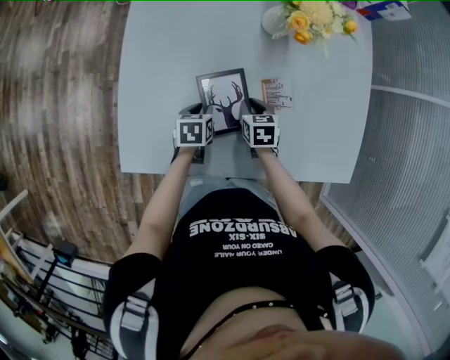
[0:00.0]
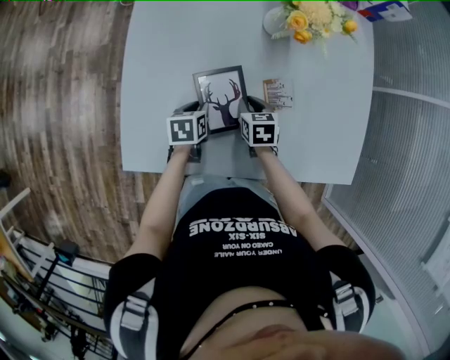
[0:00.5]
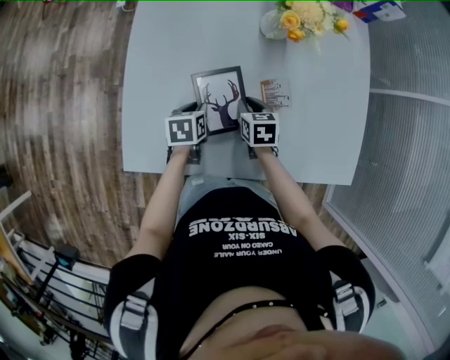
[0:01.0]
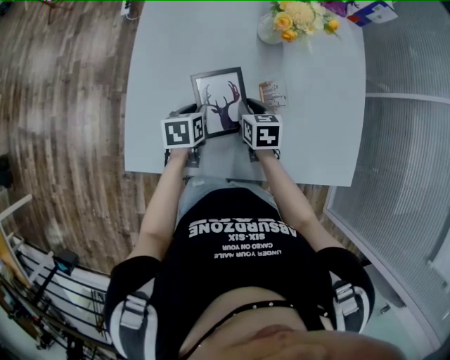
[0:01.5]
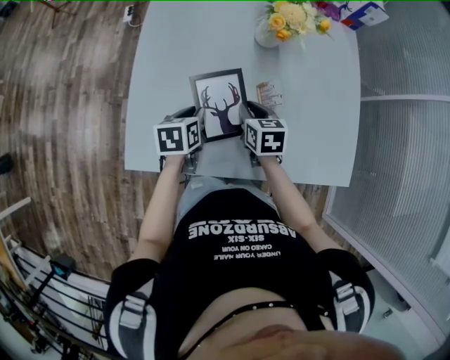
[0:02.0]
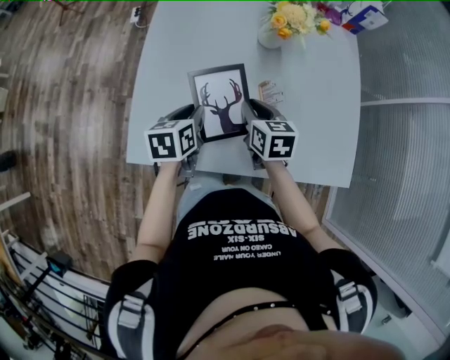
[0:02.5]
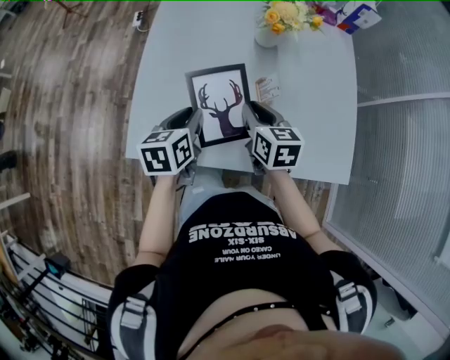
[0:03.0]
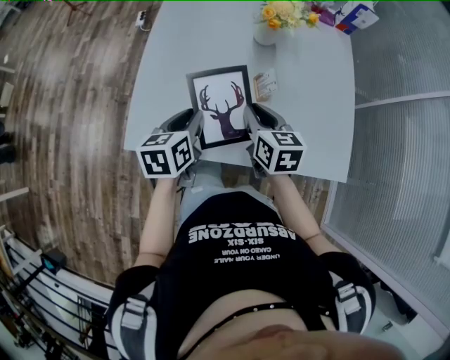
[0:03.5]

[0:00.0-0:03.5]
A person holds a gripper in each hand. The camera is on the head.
0:00.0 to 0:02.0: The grippers both shift upward by approximately 15 cm.
0:02.0 to 0:03.5: The two grippers go roughly 15 cm upward and backward.

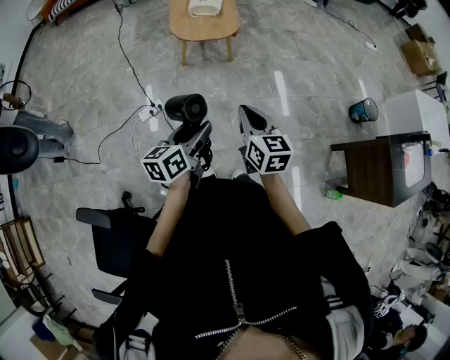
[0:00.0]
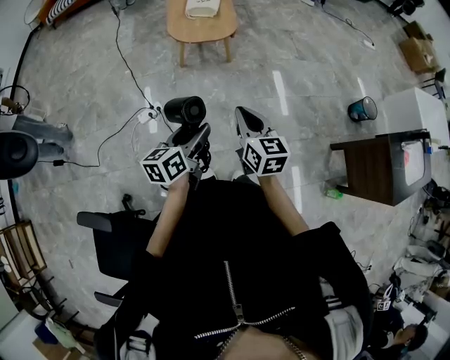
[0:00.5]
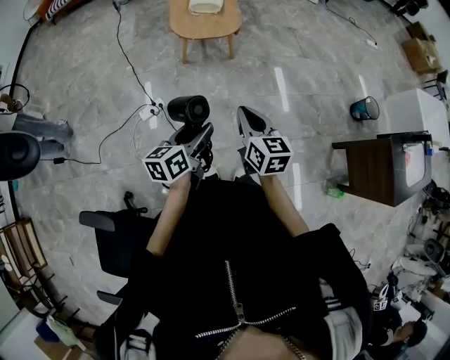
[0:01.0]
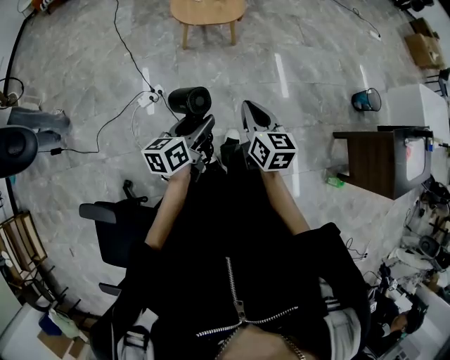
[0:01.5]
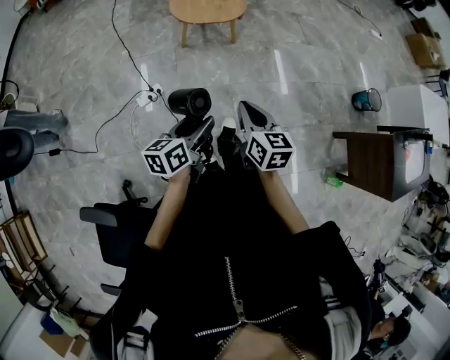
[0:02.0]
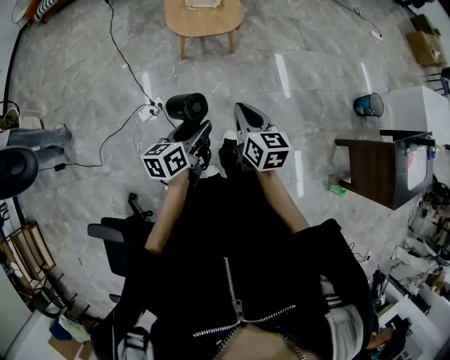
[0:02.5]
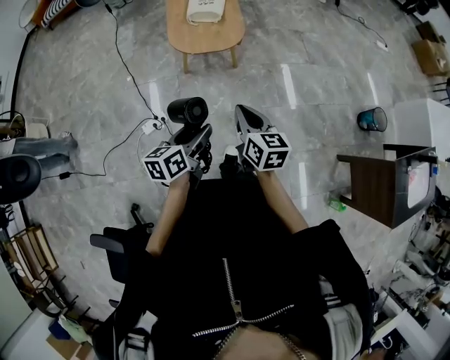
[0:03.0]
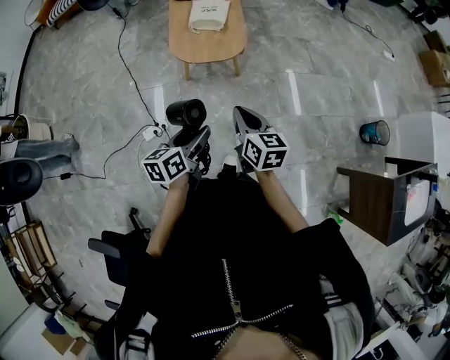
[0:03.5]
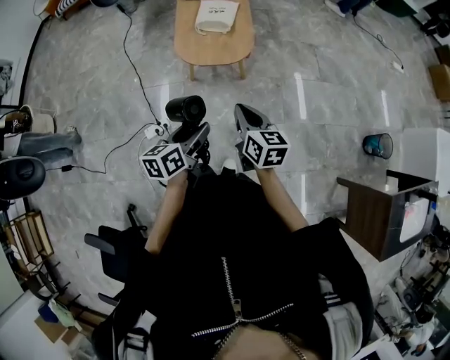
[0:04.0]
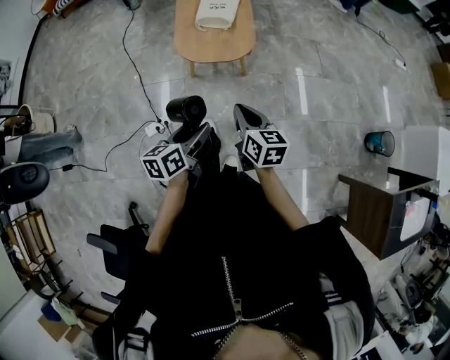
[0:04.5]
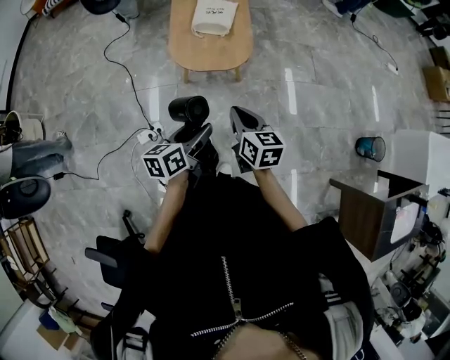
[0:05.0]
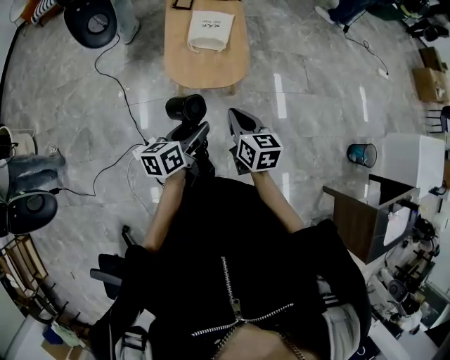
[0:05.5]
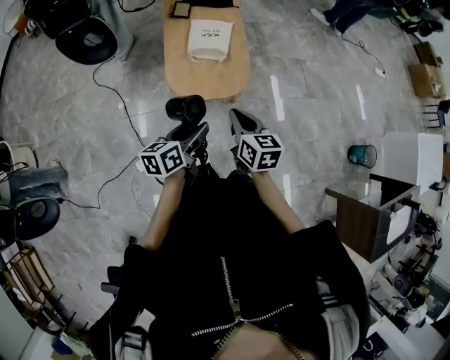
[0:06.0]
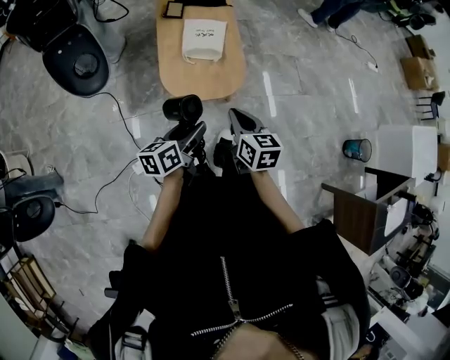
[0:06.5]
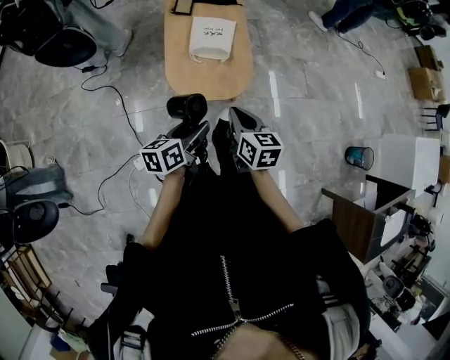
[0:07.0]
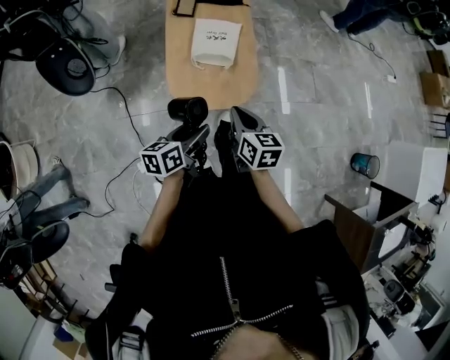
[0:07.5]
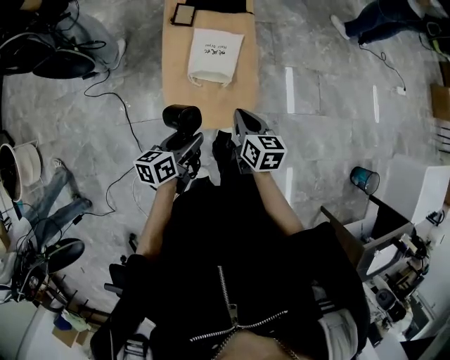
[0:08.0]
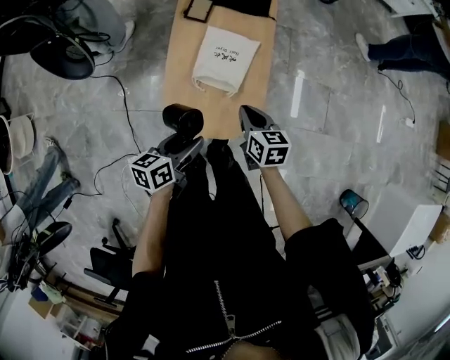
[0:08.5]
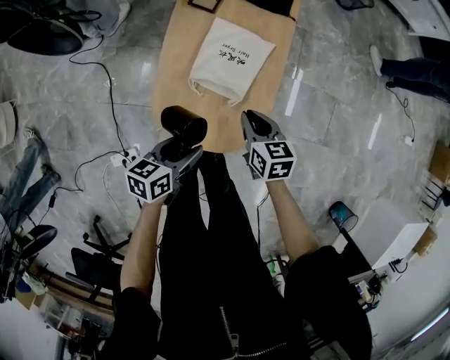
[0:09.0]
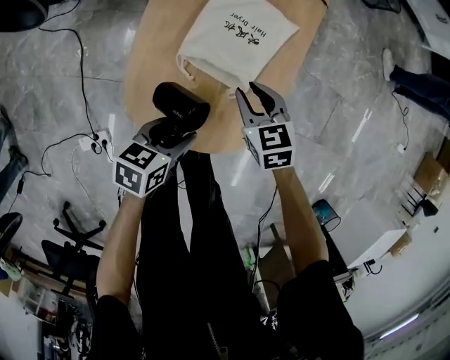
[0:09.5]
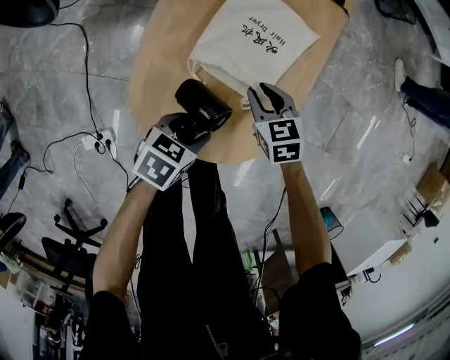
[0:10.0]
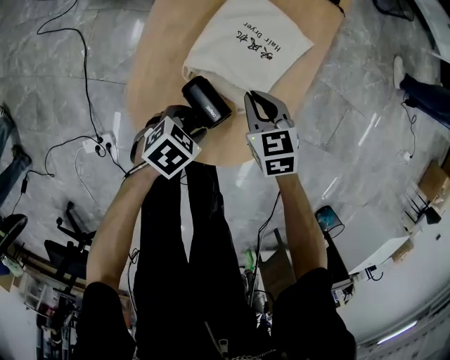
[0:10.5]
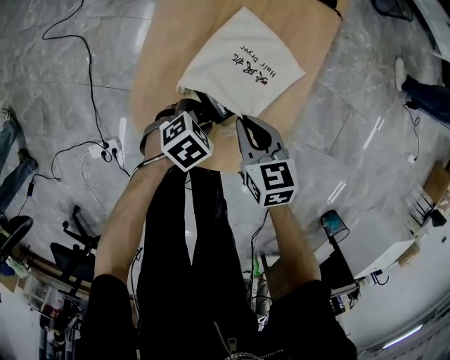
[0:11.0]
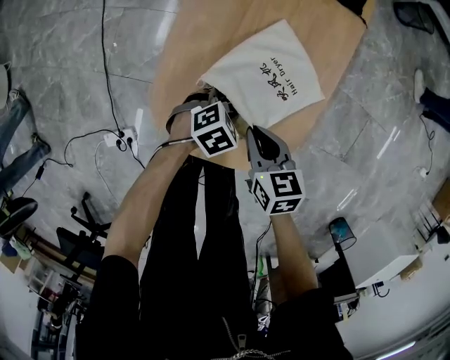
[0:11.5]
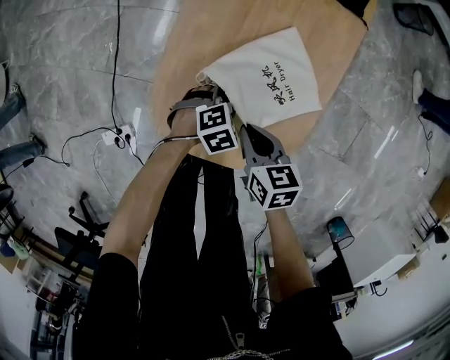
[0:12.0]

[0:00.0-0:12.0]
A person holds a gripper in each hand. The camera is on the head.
0:00.0 to 0:02.0: The right gripper moves roughly 5 cm. The left gripper ends up about 5 cm from where it was.
0:02.0 to 0:04.0: Both grippers move forward, approximately 25 cm.
0:04.0 to 0:06.0: The two grippers go roughly 25 cm forward and to the left.
0:06.0 to 0:08.0: Both grippers travel together forward, approximately 20 cm.
0:08.0 to 0:10.0: The right gripper shifts approximately 40 cm downward and forward, swivels some 50 degrees, and opens its fingers, while the left gripper travels downward by about 30 cm, and swivels some 30 degrees.
0:10.0 to 0:12.0: The left gripper heads downward and forward, covering roughly 10 cm, and changes its angle by some 40 degrees. Meanwhile the right gripper shifts about 10 cm backward, and rotates roughly 20 degrees.

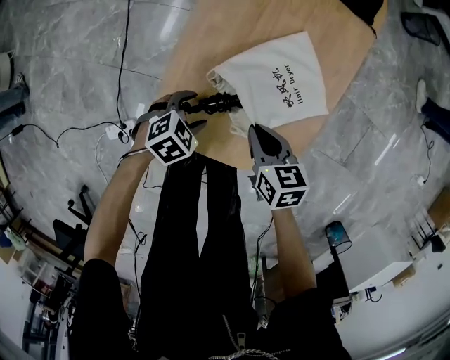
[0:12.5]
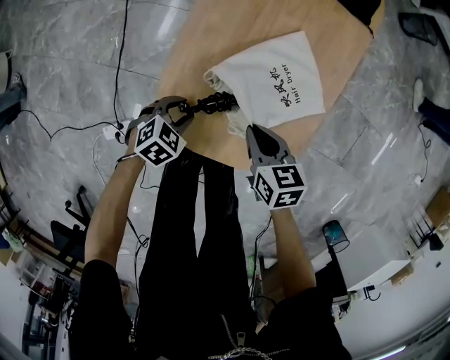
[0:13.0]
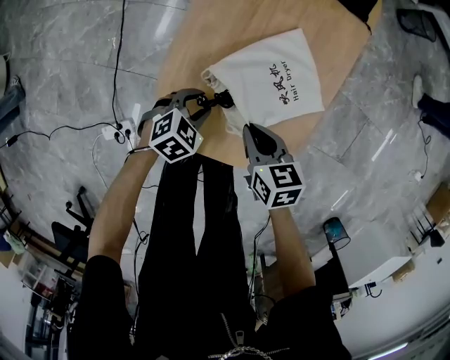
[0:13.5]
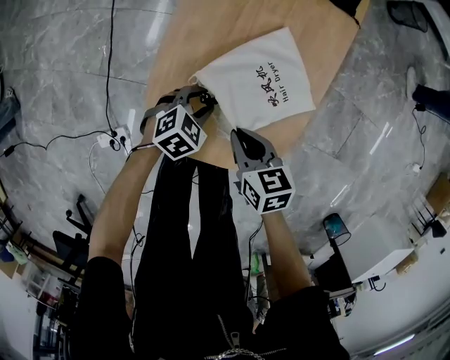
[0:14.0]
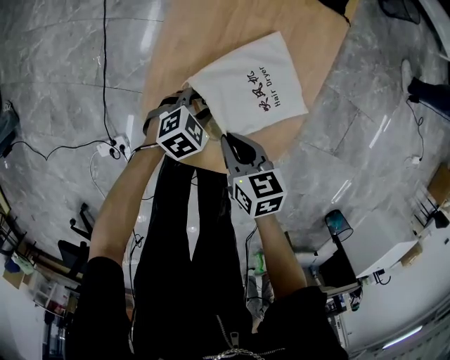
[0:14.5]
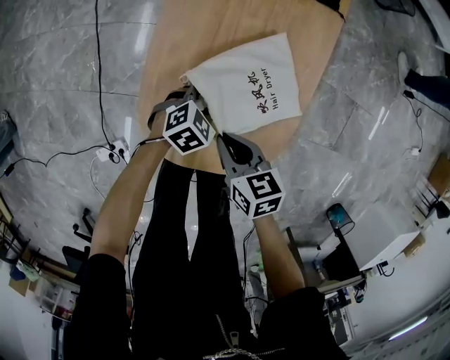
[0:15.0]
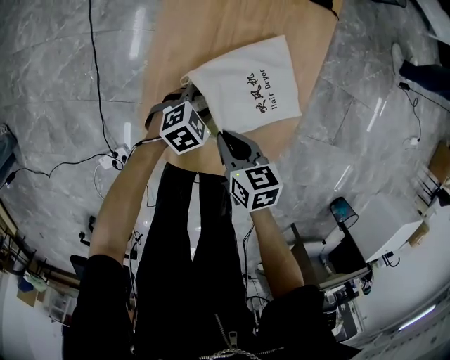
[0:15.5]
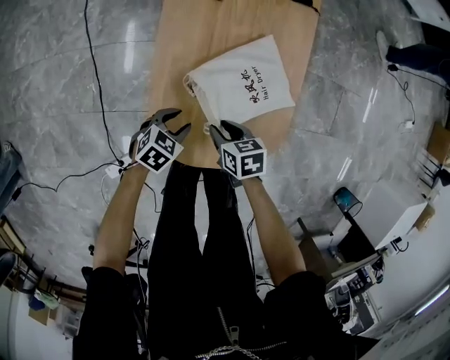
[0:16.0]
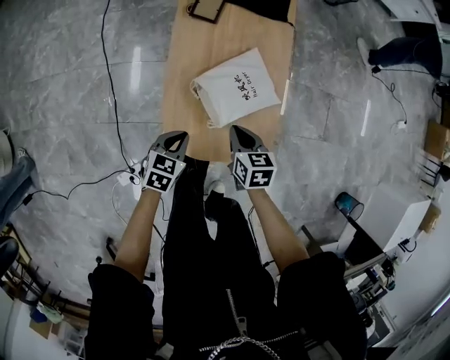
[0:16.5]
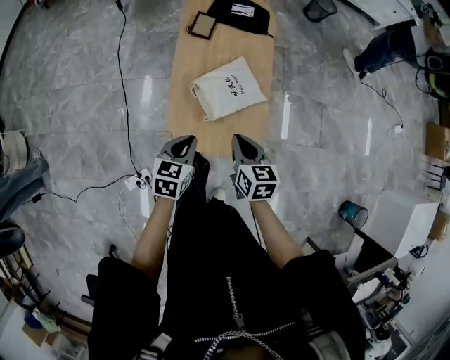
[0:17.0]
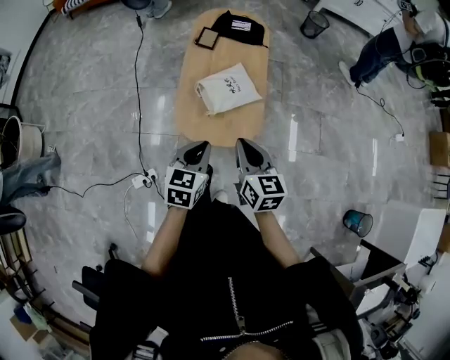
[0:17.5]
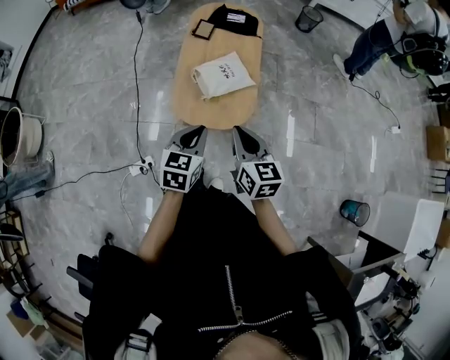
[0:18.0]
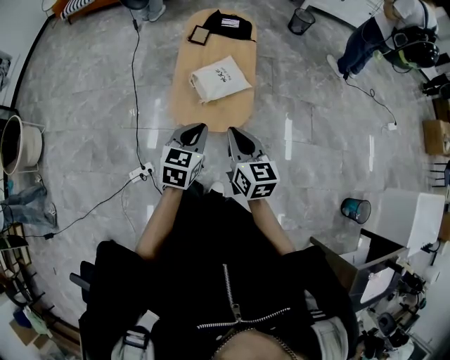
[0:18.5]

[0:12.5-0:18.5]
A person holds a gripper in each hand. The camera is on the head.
0:12.5 to 0:14.5: The left gripper shifts roughly 10 cm forward and to the right, and closes up.
0:14.5 to 0:16.5: The left gripper shifts some 20 cm upward, to the left and backward, swivels about 20 degrees, and closes. The right gripper heads upward, covering about 10 cm, turns by approximately 20 degrees, and opens and closes again.
0:16.5 to 0:18.5: The left gripper moves upward, backward and to the right, roughly 40 cm, and changes its angle by roughly 20 degrees. The right gripper is displaced upward and backward by some 40 cm, and tilts its fingers some 30 degrees upward.

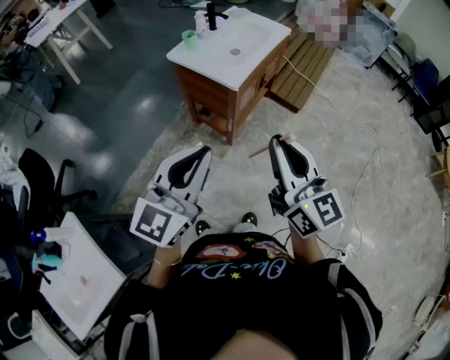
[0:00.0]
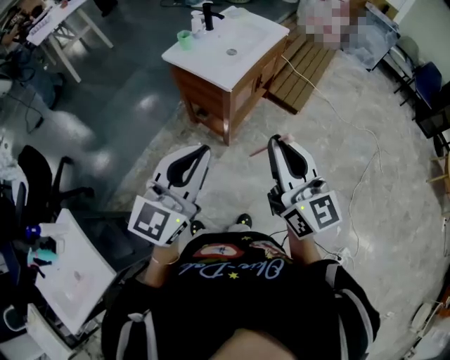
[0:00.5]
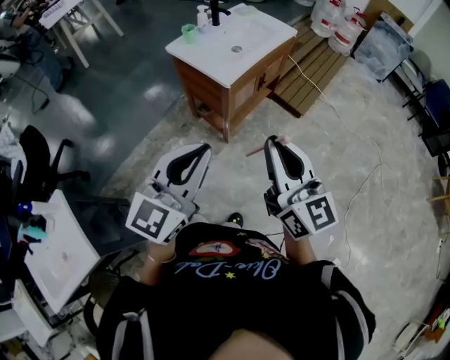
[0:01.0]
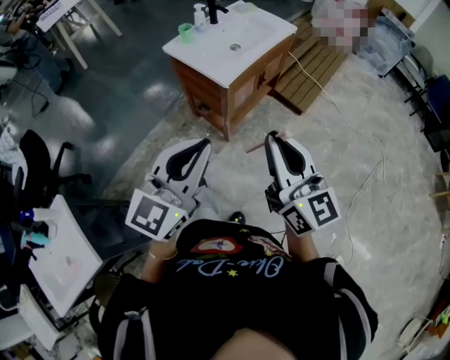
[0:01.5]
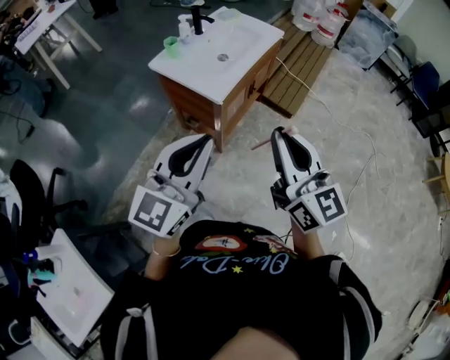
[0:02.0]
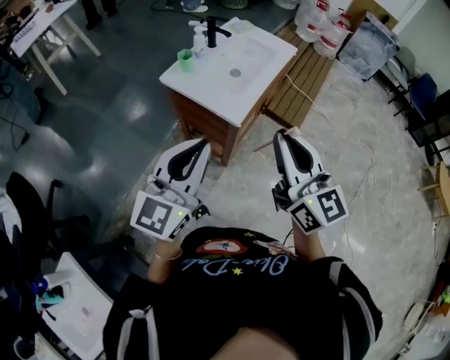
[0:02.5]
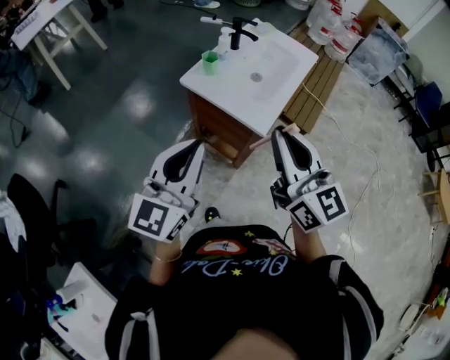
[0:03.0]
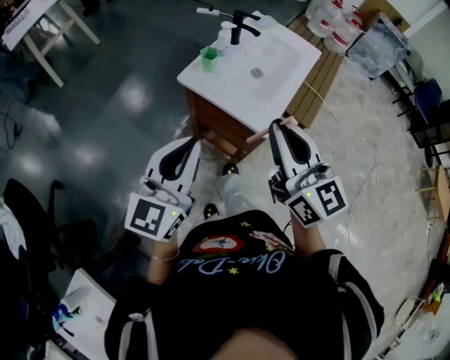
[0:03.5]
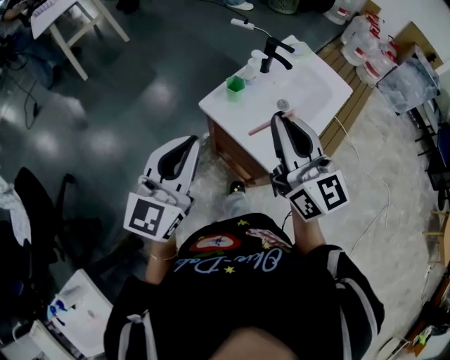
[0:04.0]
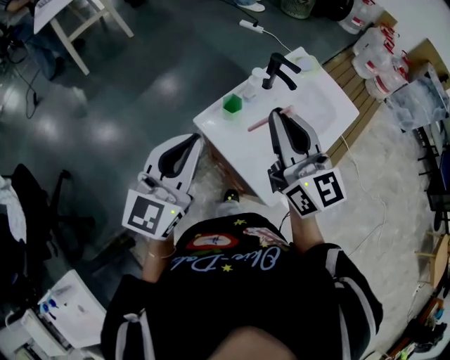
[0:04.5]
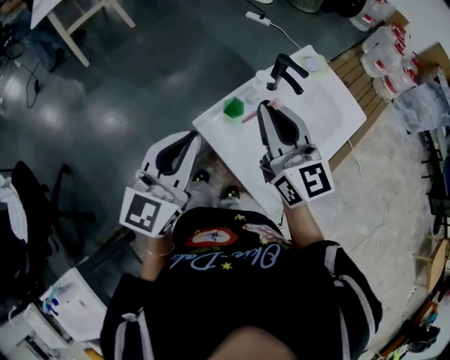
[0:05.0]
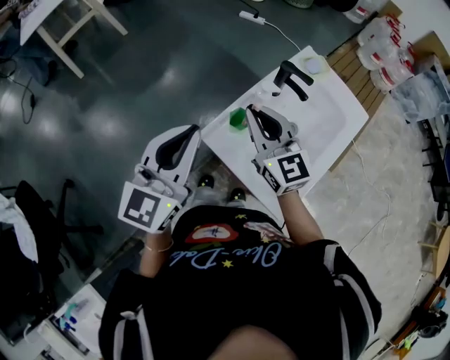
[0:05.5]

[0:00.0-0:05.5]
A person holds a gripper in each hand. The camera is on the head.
0:00.0 to 0:02.0: Both grippers travel together forward and to the right, approximately 10 cm.
0:02.0 to 0:03.5: The two grippers go some 25 cm to the left and forward.
0:03.5 to 0:05.5: The two grippers go roughly 30 cm forward.
